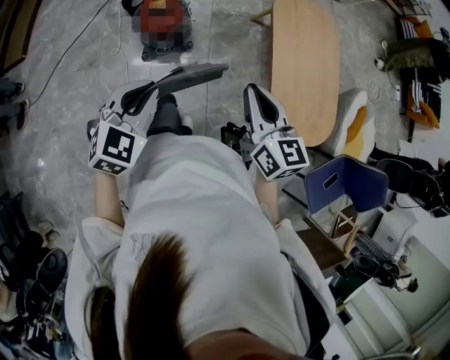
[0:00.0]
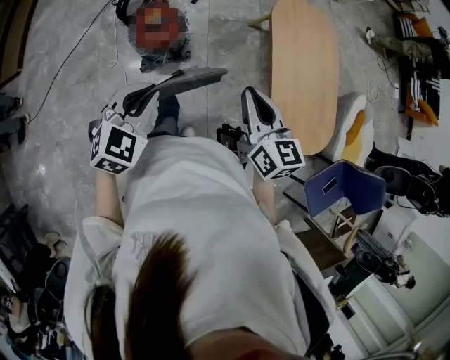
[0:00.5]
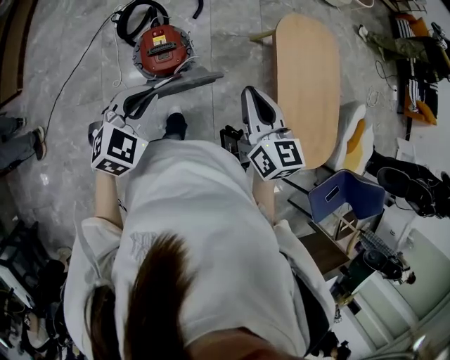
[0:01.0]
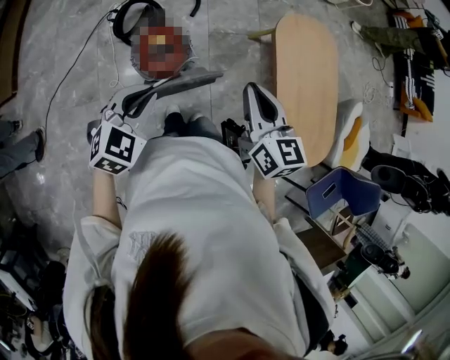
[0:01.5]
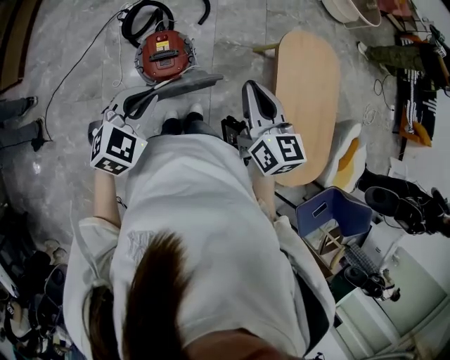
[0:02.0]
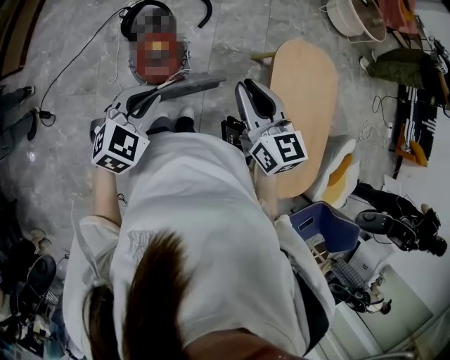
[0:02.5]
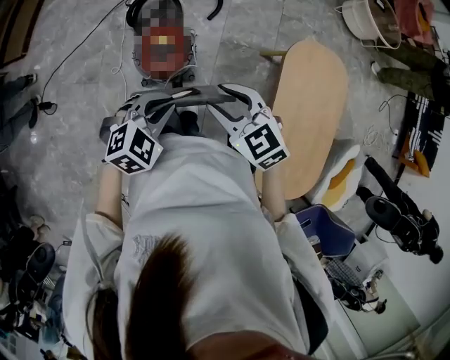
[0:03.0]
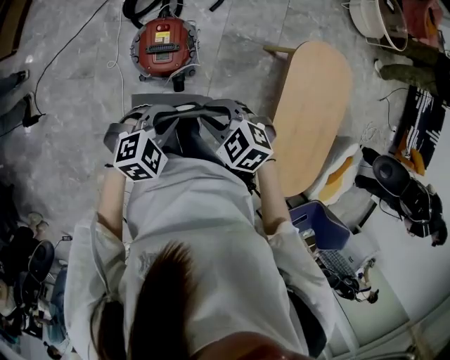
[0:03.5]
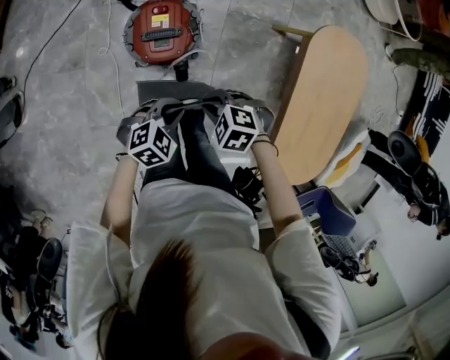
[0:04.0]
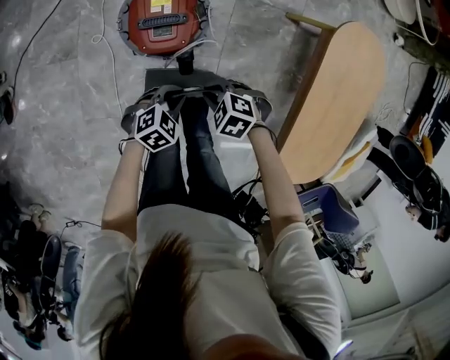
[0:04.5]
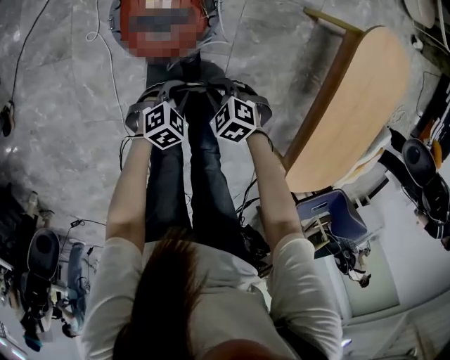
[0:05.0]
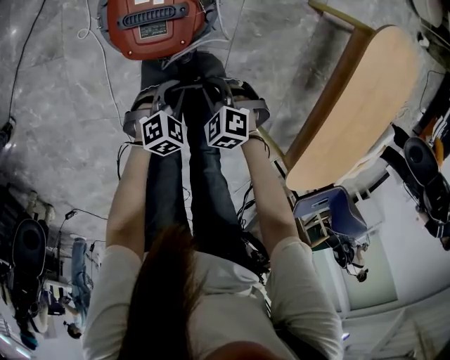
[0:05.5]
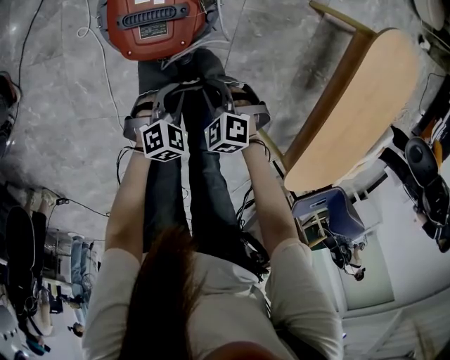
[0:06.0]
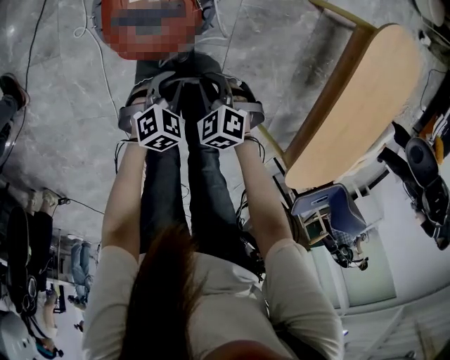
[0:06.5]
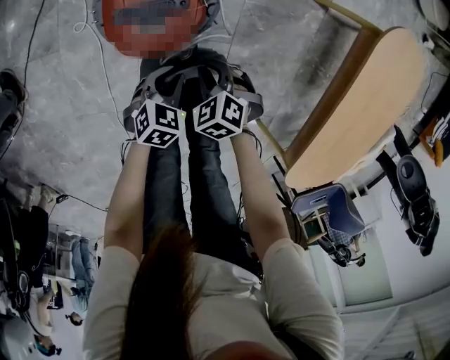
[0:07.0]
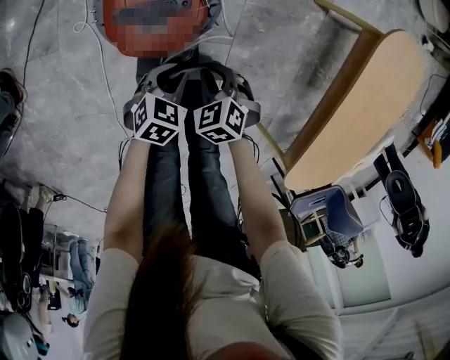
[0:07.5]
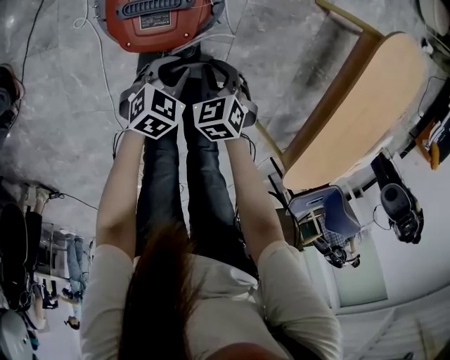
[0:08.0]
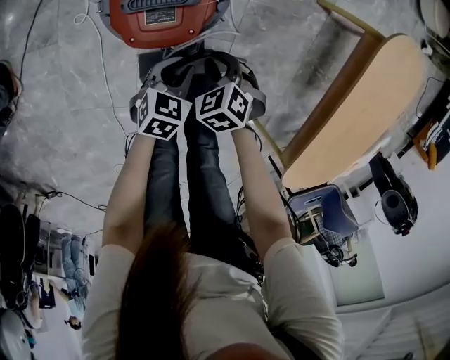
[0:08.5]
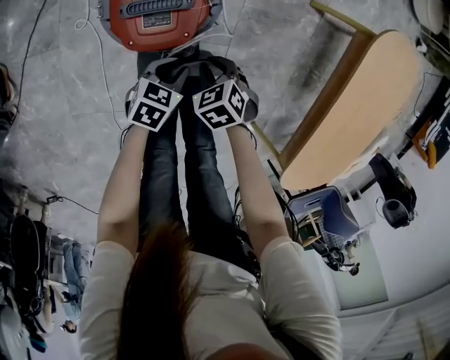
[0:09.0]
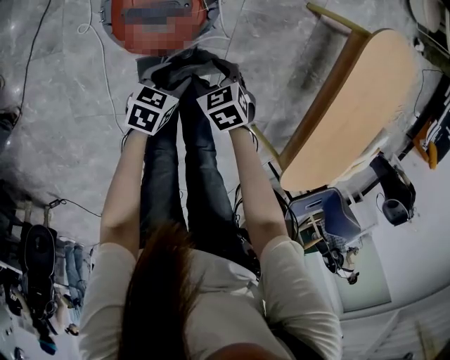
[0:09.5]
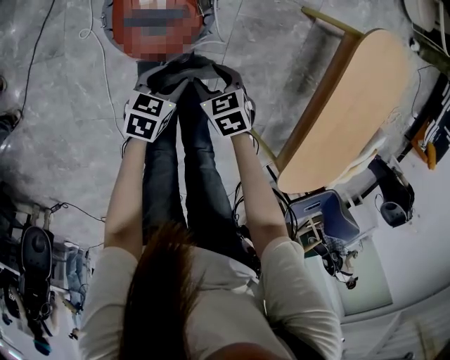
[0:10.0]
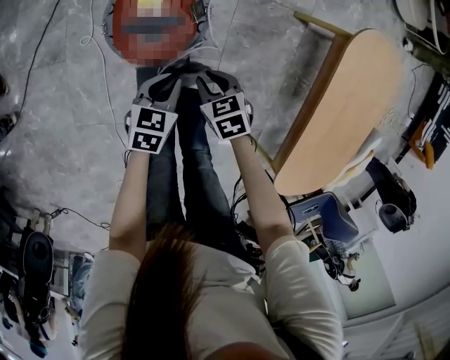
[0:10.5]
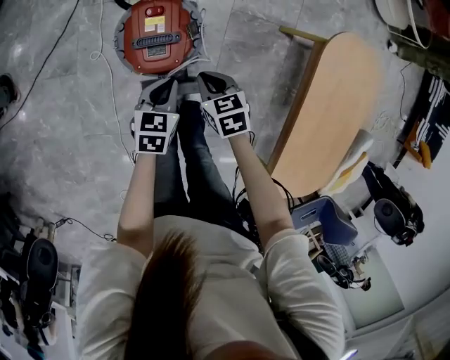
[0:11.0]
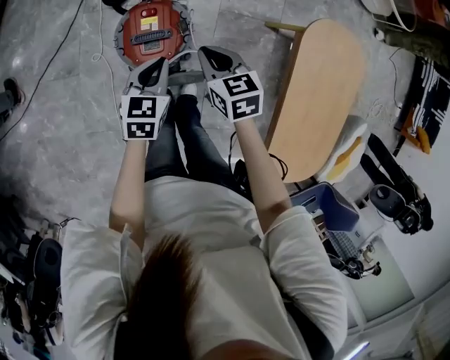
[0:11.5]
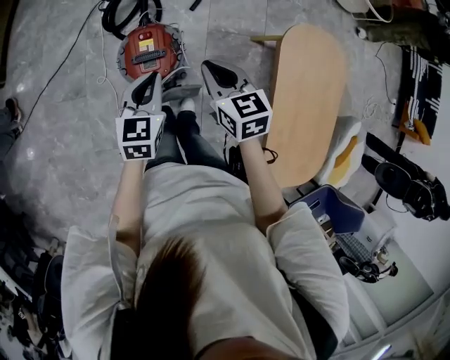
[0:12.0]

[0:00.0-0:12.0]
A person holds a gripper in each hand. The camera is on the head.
0:00.0 to 0:02.0: Both grippers travel together forward and to the left, approximately 25 cm.
0:02.0 to 0:04.0: The grippers both shift downward by roughly 30 cm. The left gripper swivels roughly 20 degrees. The right gripper points its fingers roughly 50 degrees further downward, and opens and closes again.
0:04.0 to 0:06.0: The two grippers go approximately 25 cm downward.
0:06.0 to 0:08.0: The right gripper changes its angle by some 30 degrees.
0:08.0 to 0:10.0: The left gripper turns by about 20 degrees, and opens; the right gripper opens its fingers.
0:10.0 to 0:12.0: The two grippers go some 40 cm upward. The right gripper swivels approximately 30 degrees, and closes up. Meanwhile the left gripper changes its angle by some 30 degrees, and closes.

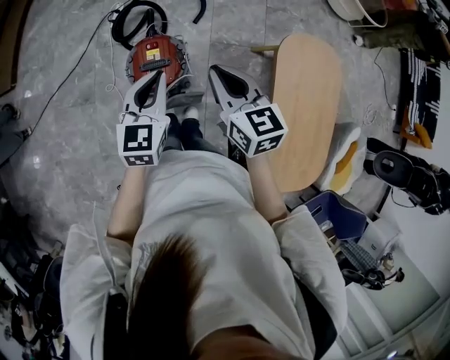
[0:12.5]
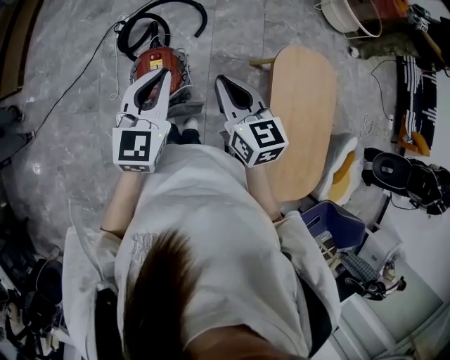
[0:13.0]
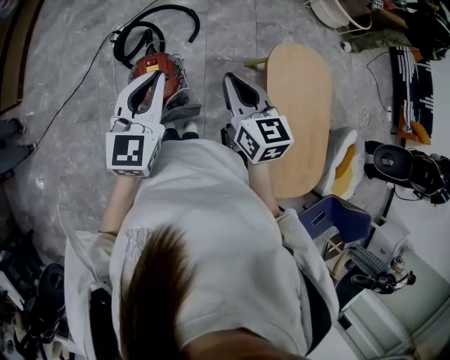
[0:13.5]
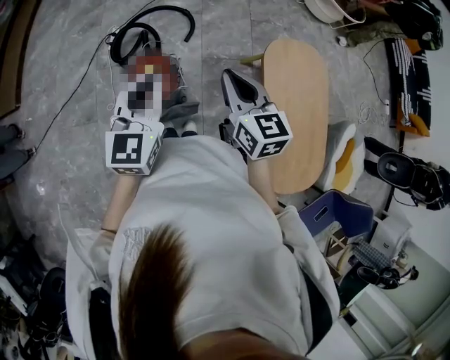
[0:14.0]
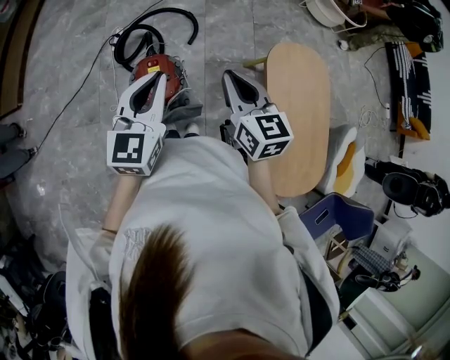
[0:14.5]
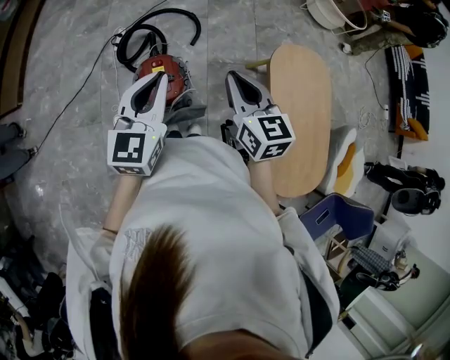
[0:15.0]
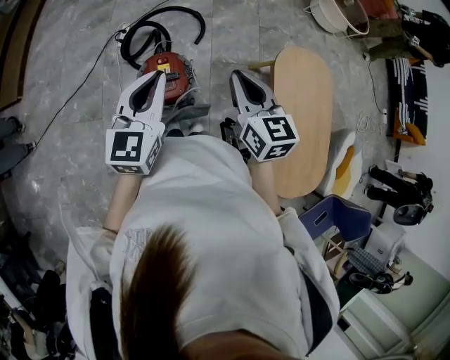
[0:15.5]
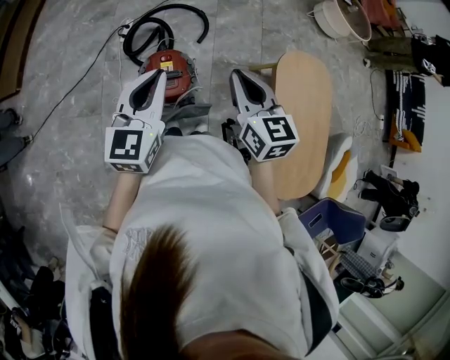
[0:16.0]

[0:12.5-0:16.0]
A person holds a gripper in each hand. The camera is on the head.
0:12.5 to 0:14.5: The left gripper heads upward, covering some 10 cm, while the right gripper goes about 5 cm upward.
0:14.5 to 0:16.0: The grippers both shift to the left by some 10 cm.

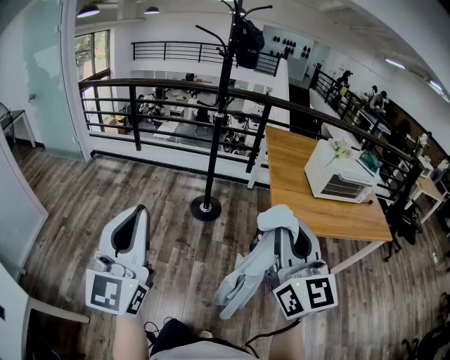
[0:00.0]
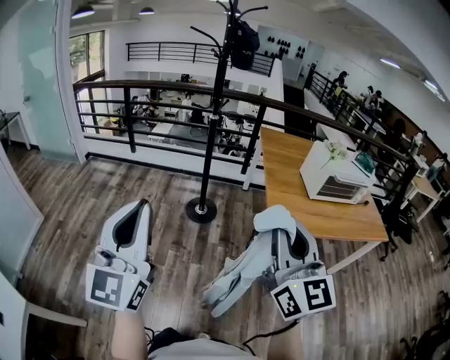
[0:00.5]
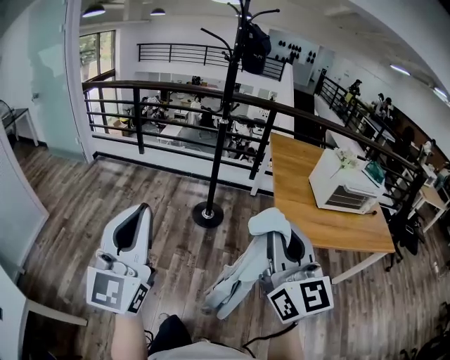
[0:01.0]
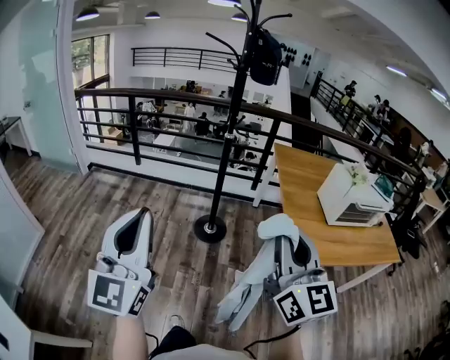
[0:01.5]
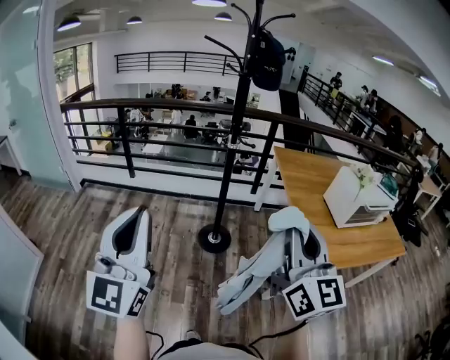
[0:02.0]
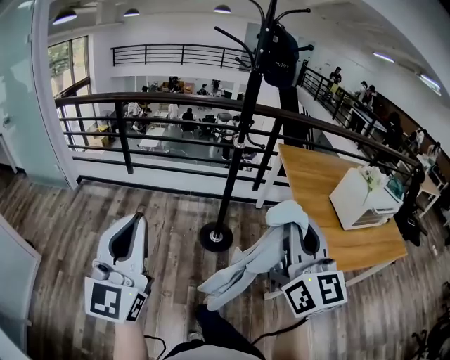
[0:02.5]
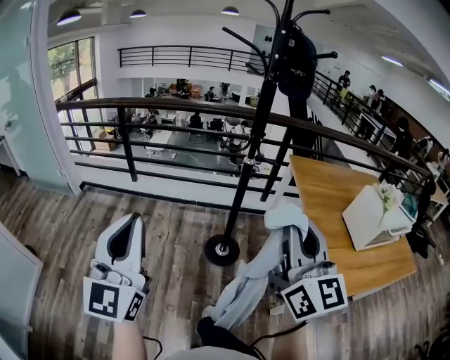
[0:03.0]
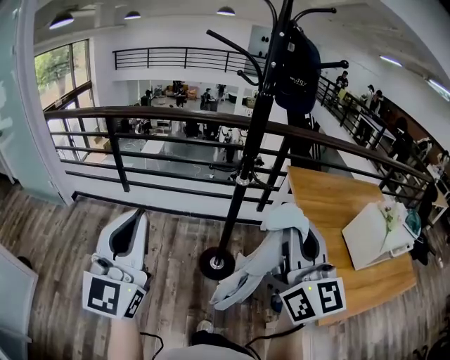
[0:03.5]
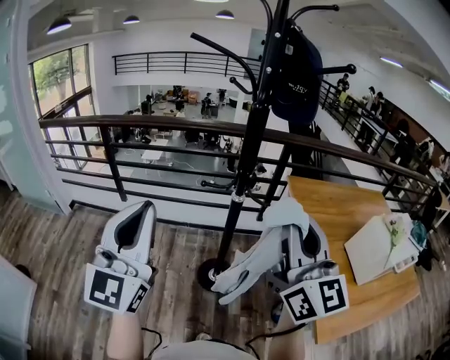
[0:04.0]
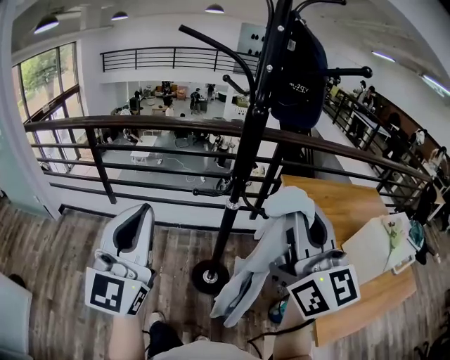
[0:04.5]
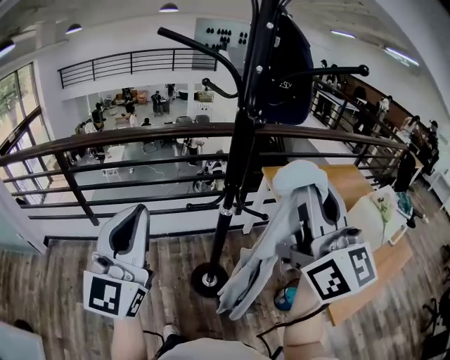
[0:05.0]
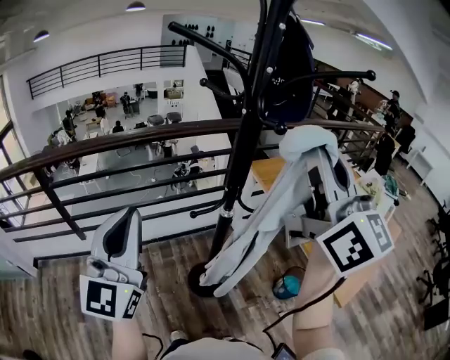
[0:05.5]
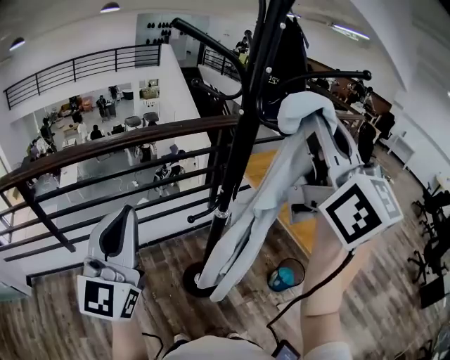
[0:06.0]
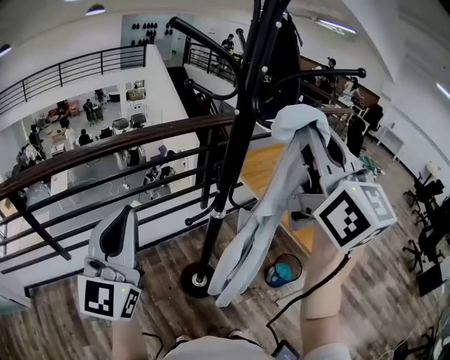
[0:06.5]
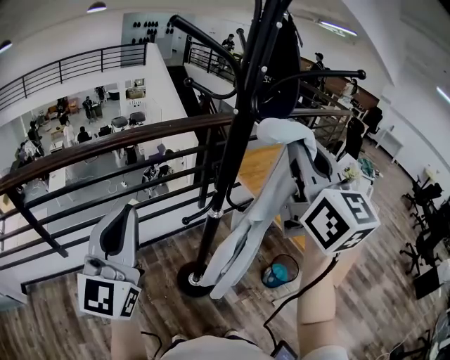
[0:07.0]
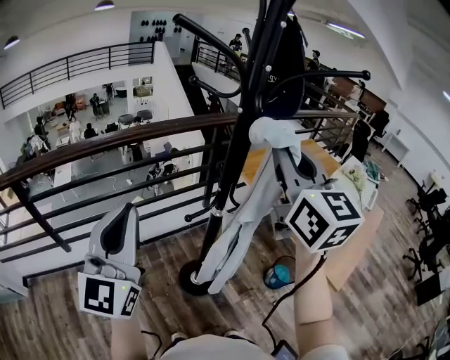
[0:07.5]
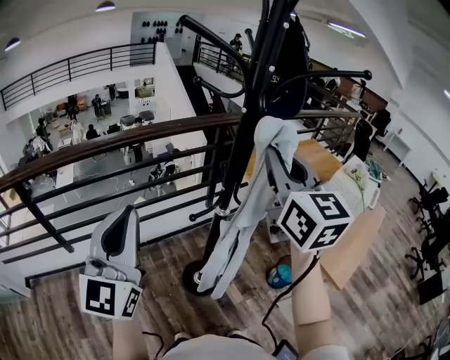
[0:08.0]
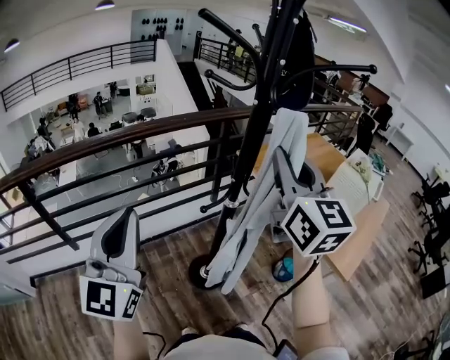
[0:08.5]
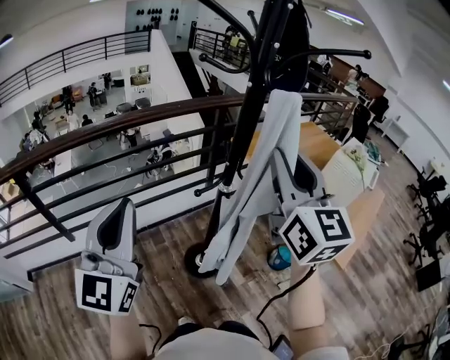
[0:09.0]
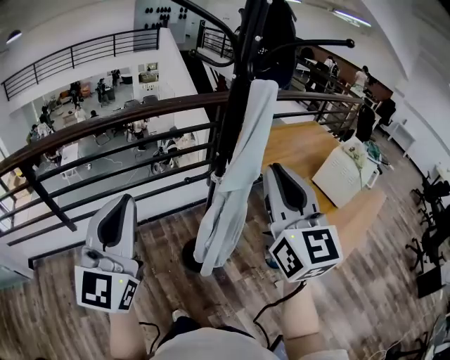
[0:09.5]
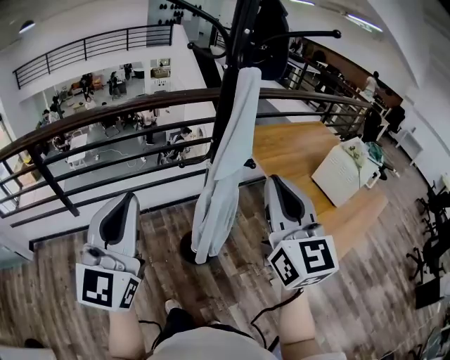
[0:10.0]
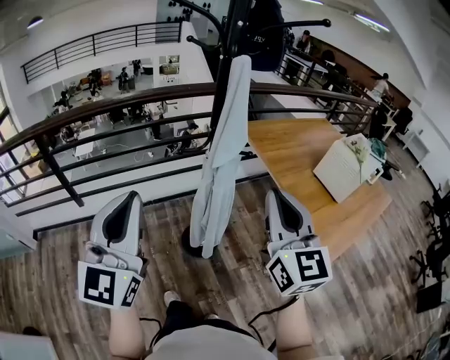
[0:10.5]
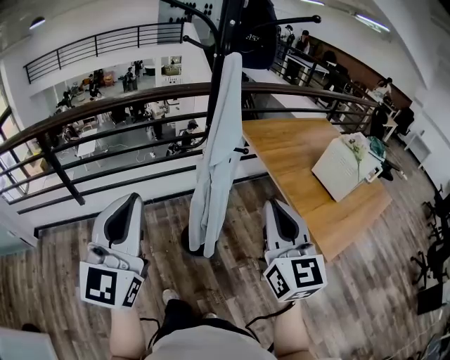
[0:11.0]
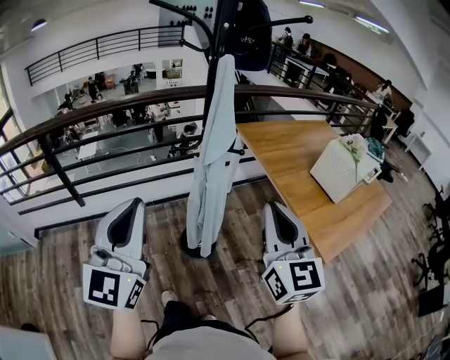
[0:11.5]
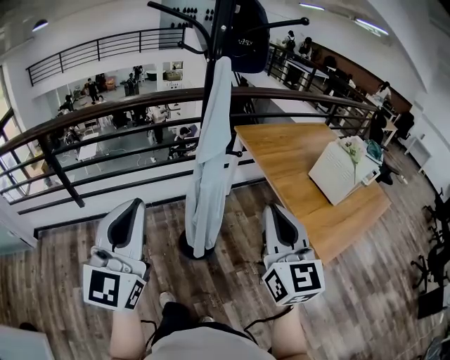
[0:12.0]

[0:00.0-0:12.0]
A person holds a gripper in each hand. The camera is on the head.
0:00.0 to 0:02.0: Both grippers travel together forward and to the left, approximately 30 cm.
0:02.0 to 0:04.0: The two grippers go roughly 35 cm forward.
0:04.0 to 0:06.0: The right gripper shifts some 25 cm upward, forward and to the left, and changes its angle by approximately 30 degrees. Meanwhile the left gripper moves forward and to the left, approximately 25 cm, and changes its angle by approximately 30 degrees.
0:06.0 to 0:08.0: The right gripper moves downward and forward, some 15 cm.
0:08.0 to 0:10.0: The right gripper shifts approximately 20 cm backward and downward, while the left gripper shifts approximately 15 cm backward and to the right.
0:10.0 to 0:12.0: The right gripper moves backward, to the right and downward, some 10 cm, while the left gripper shifts roughly 10 cm to the right and backward.
